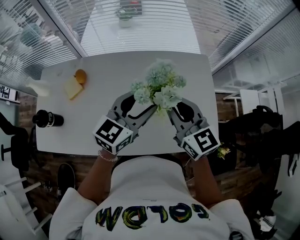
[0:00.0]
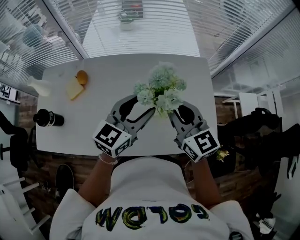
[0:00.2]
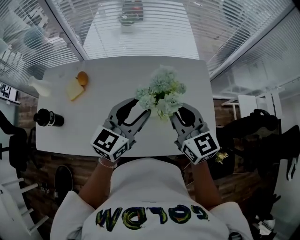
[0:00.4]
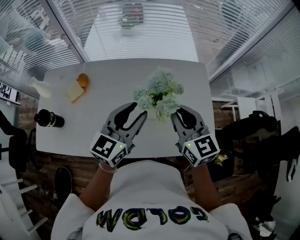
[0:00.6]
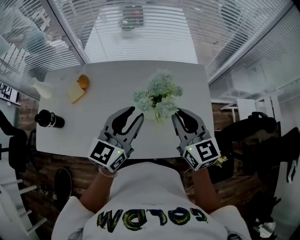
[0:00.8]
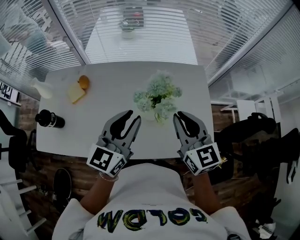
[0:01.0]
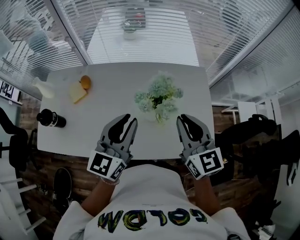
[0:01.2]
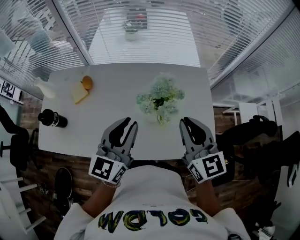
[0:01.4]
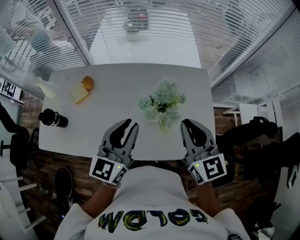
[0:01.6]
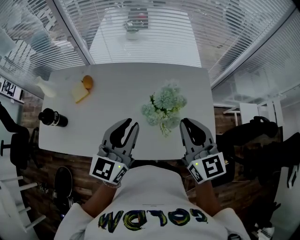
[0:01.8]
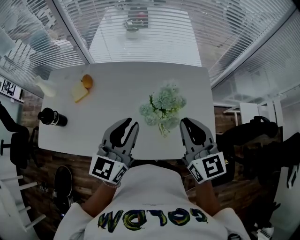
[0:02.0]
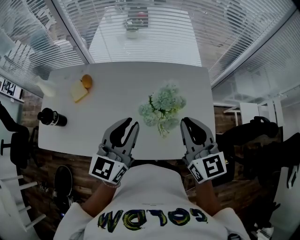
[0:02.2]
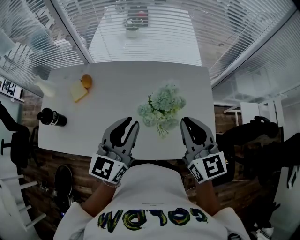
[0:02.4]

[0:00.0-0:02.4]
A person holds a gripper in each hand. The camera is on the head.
0:00.0 to 0:01.2: The right gripper changes place by some 5 cm. Meanwhile the left gripper heads backward and to the left, covering approximately 10 cm, rotates some 20 degrees, and closes its fingers.
0:01.2 to 0:02.4: Both grippers stay put.

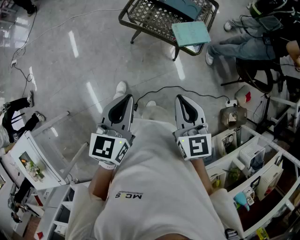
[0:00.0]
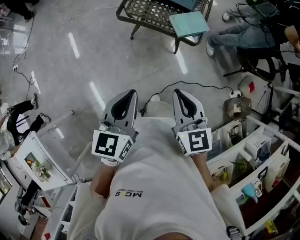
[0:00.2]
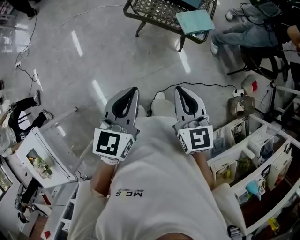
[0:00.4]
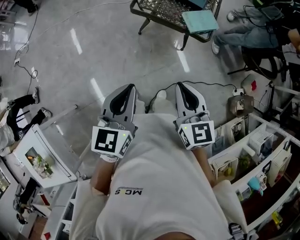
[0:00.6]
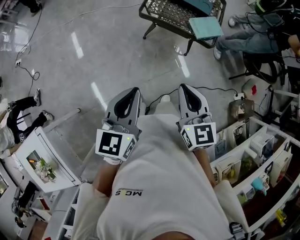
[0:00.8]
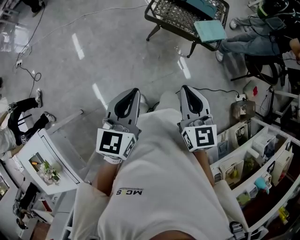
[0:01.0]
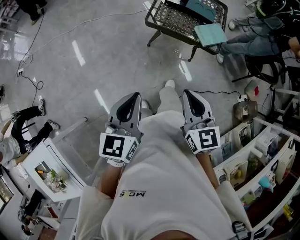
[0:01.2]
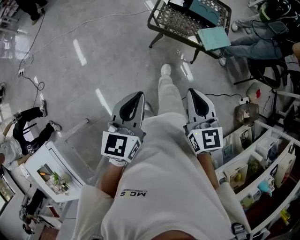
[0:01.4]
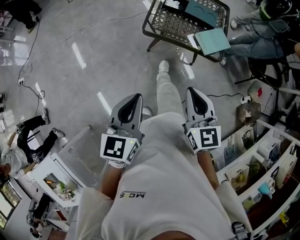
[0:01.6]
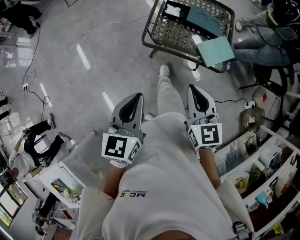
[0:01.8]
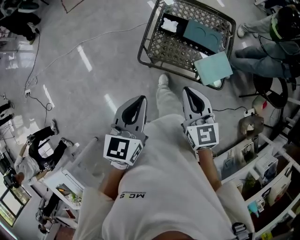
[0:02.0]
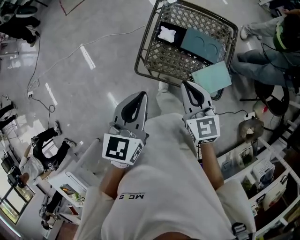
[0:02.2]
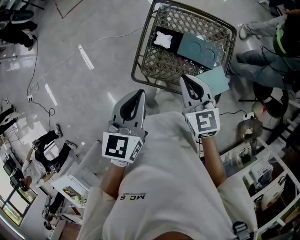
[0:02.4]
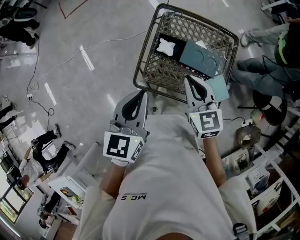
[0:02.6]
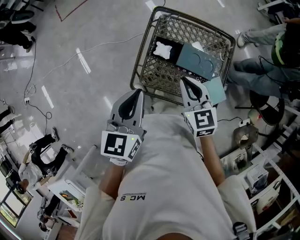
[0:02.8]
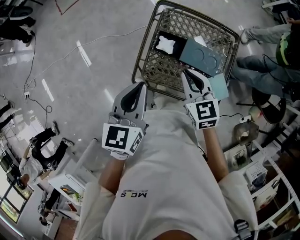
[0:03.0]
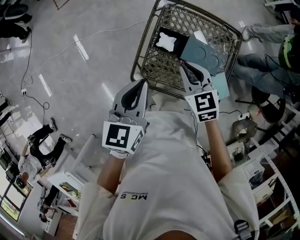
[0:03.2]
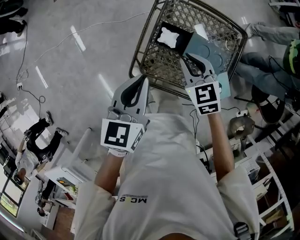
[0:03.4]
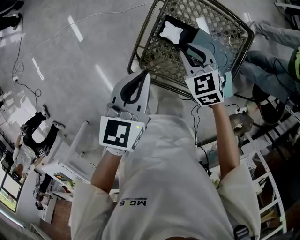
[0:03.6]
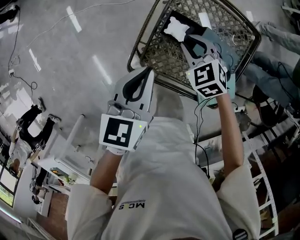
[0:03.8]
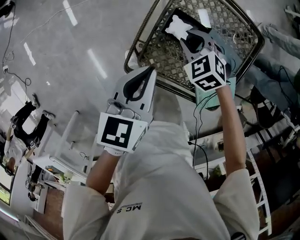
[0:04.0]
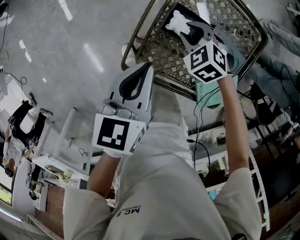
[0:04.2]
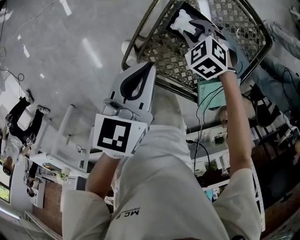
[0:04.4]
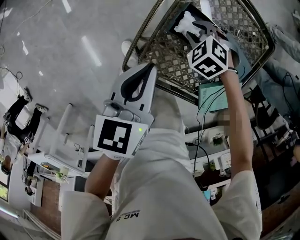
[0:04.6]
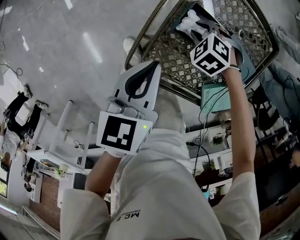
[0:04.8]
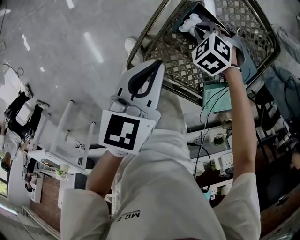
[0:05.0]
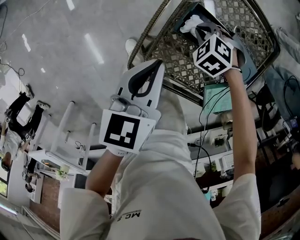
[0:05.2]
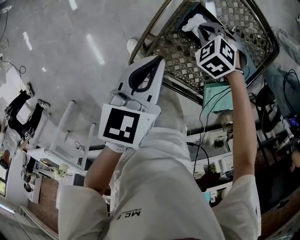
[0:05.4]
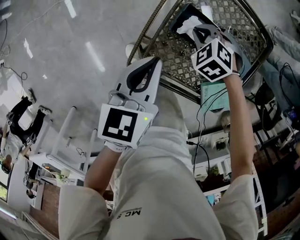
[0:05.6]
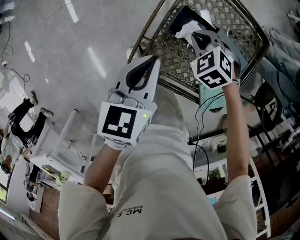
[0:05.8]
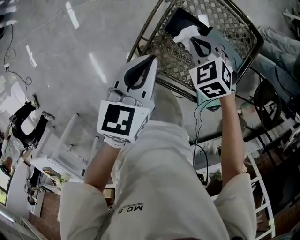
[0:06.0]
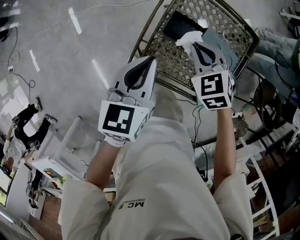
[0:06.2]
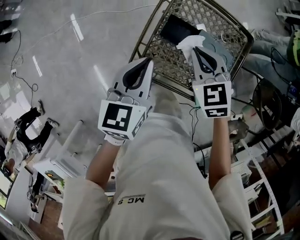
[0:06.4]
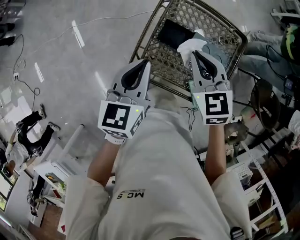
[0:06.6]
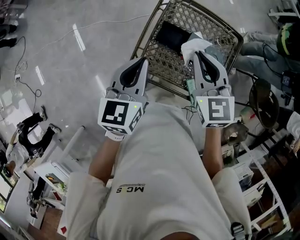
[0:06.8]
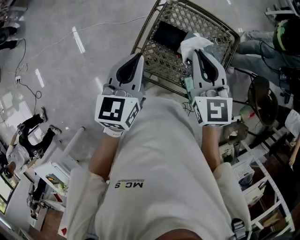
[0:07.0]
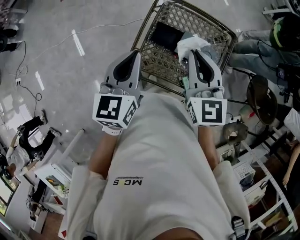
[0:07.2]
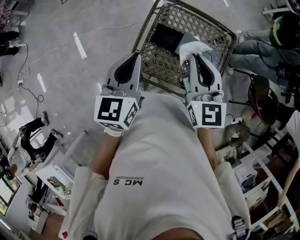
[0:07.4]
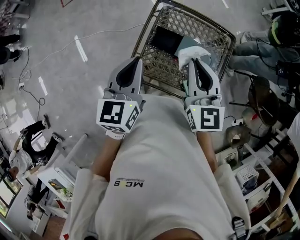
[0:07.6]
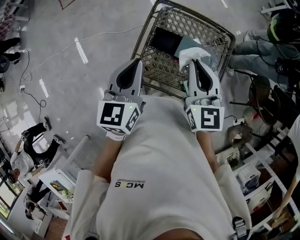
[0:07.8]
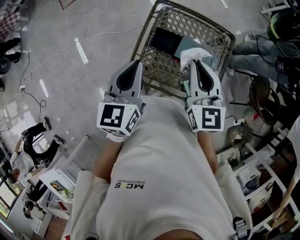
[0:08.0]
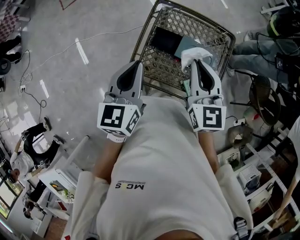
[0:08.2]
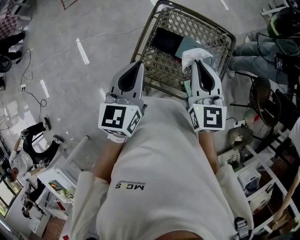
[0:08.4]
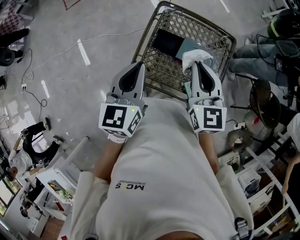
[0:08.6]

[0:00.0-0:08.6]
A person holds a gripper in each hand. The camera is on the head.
0:00.0 to 0:01.4: Both grippers travel together to the left, approximately 20 cm.
0:01.4 to 0:02.8: The pair of grippers is taken forward, about 50 cm.
0:02.8 to 0:04.4: The right gripper moves downward and forward, approximately 35 cm, tilts its fingers about 40 degrees downward, and opens its fingers; the left gripper heads downward and forward, covering some 20 cm, and turns by approximately 20 degrees.
0:04.4 to 0:05.8: The right gripper heads upward, covering roughly 5 cm, and closes.
0:05.8 to 0:07.2: The left gripper is displaced upward by some 15 cm. Meanwhile the right gripper goes roughly 35 cm upward, and tilts its fingers some 50 degrees upward.
0:07.2 to 0:08.6: The grippers move only a little.

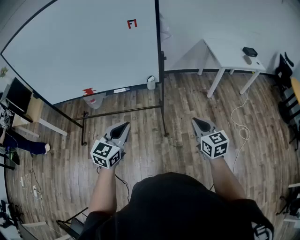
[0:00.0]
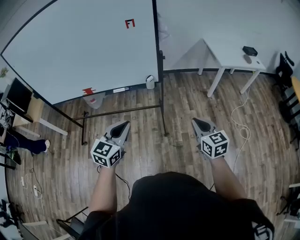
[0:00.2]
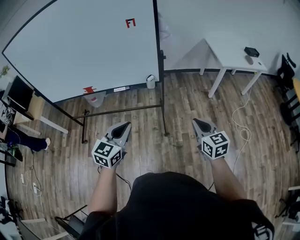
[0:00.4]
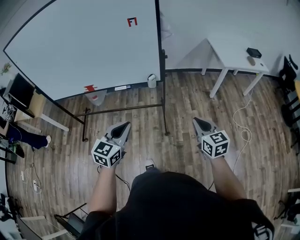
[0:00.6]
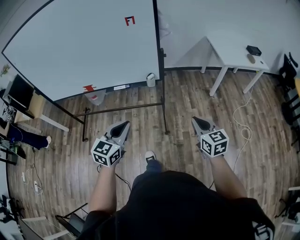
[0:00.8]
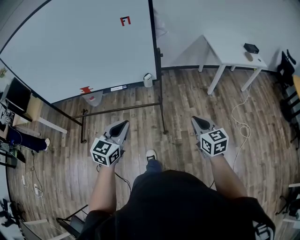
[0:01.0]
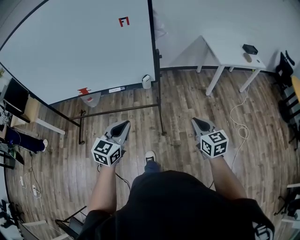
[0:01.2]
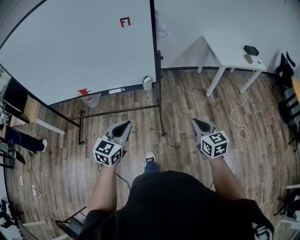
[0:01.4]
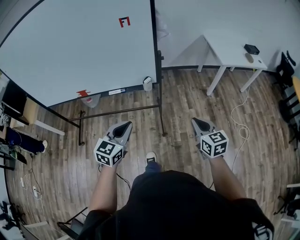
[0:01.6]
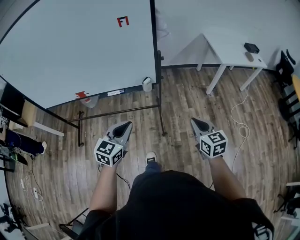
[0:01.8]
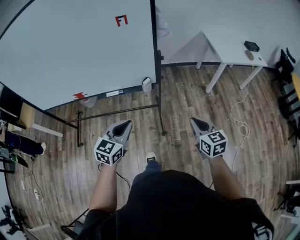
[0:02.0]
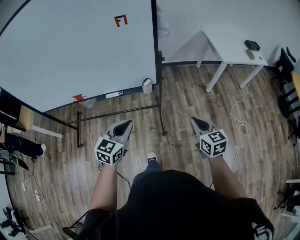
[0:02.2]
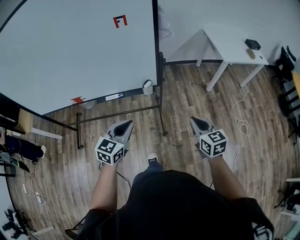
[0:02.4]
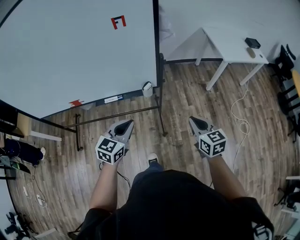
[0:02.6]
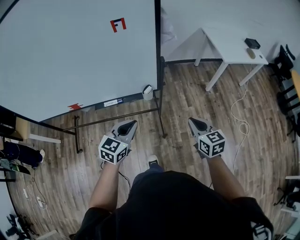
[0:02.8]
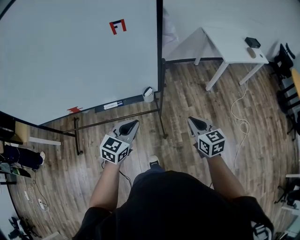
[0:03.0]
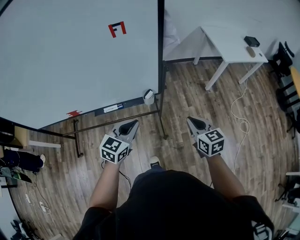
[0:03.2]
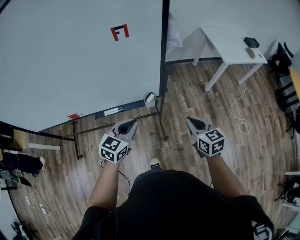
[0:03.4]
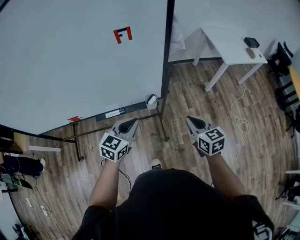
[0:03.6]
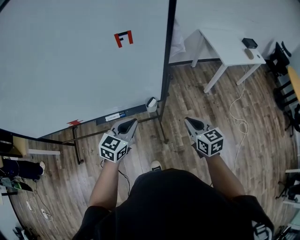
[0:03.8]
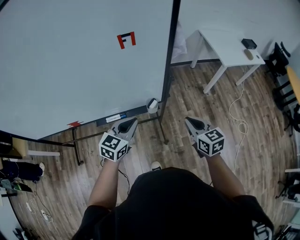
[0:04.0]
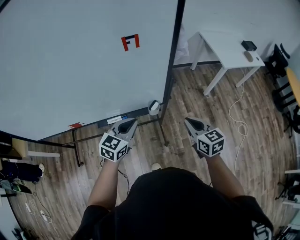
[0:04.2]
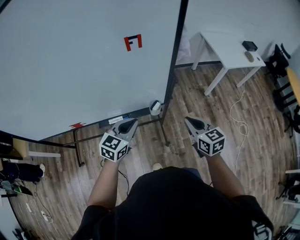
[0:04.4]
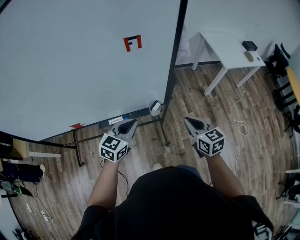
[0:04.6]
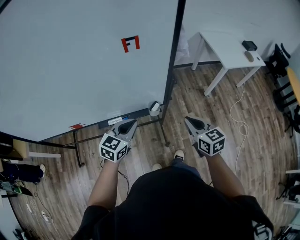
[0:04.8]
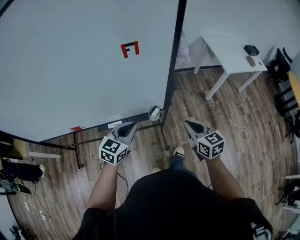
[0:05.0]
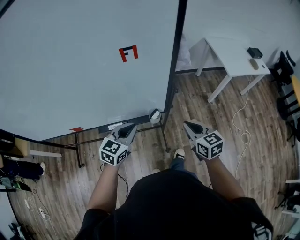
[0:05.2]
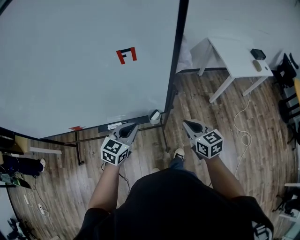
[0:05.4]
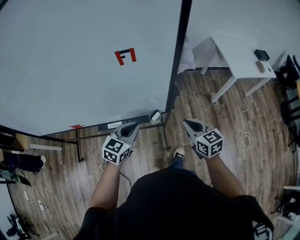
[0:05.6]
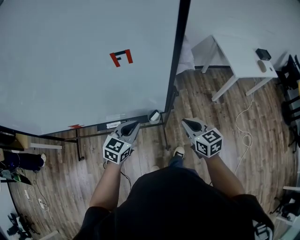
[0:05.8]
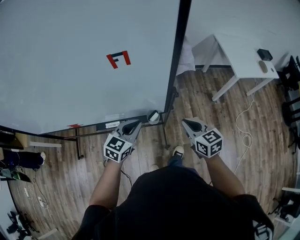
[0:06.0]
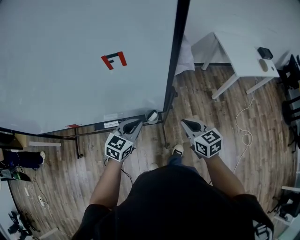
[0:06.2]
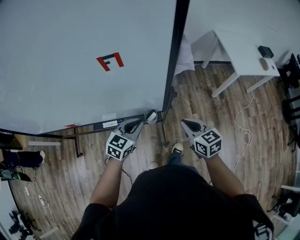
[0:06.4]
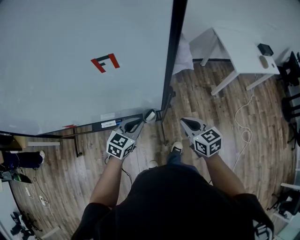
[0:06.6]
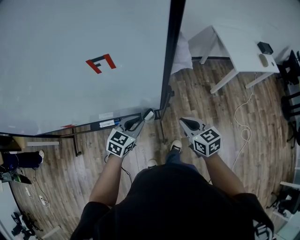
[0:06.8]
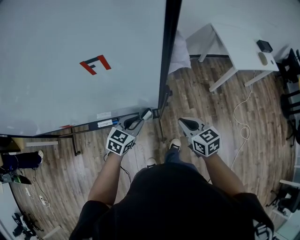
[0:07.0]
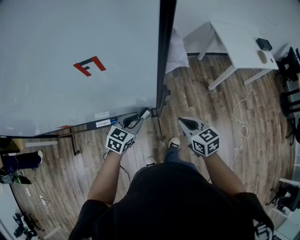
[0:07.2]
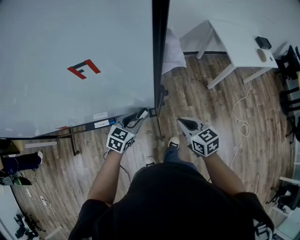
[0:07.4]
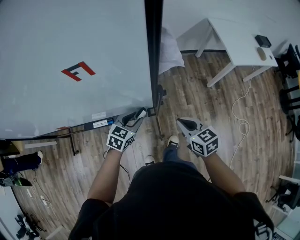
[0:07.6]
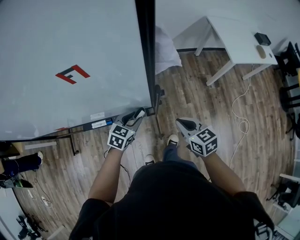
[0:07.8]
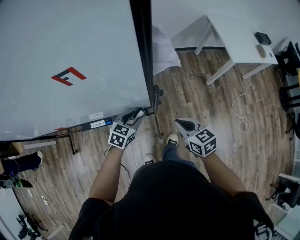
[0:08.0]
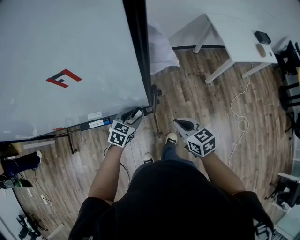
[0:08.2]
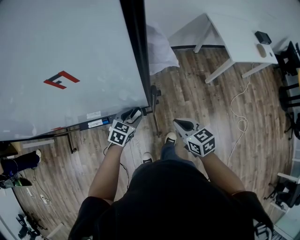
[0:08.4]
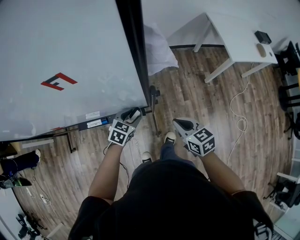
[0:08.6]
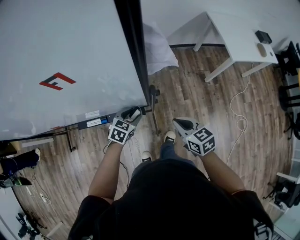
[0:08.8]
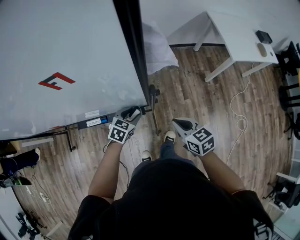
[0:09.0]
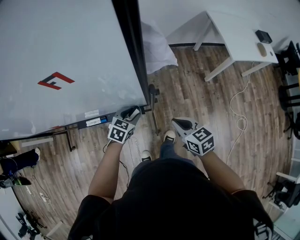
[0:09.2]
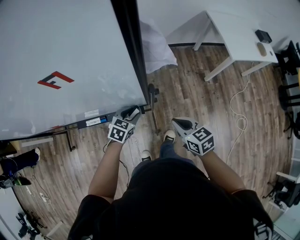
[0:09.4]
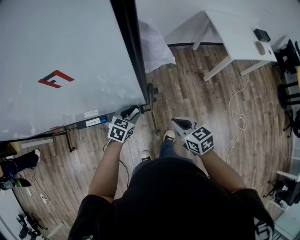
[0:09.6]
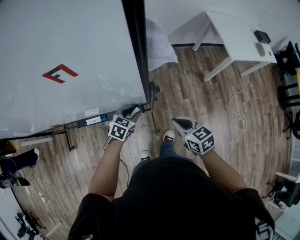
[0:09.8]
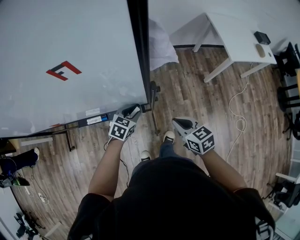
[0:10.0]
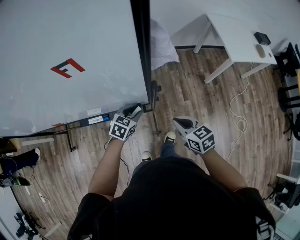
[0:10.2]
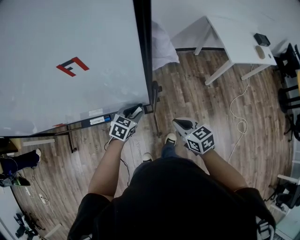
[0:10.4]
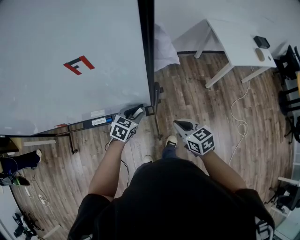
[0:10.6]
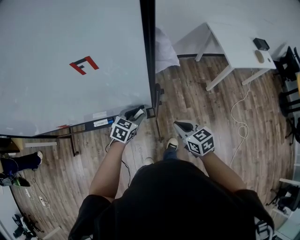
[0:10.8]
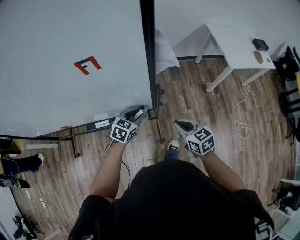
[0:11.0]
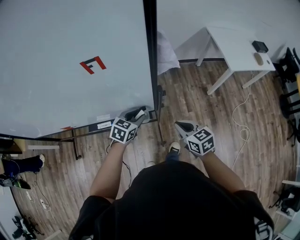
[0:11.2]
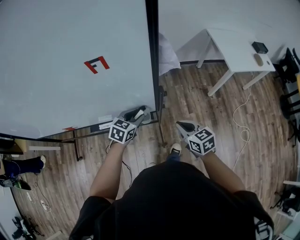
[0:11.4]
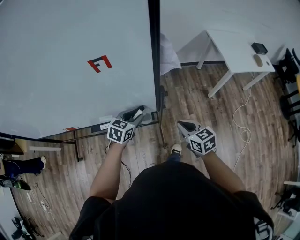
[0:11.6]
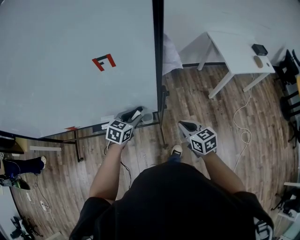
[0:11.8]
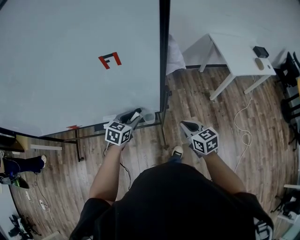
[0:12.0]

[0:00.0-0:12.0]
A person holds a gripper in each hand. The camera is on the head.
0:00.0 to 0:01.6: The grippers both shift forward by approximately 5 cm.
0:01.6 to 0:03.0: The right gripper heads forward and to the left, covering some 15 cm; the left gripper is displaced forward by some 15 cm.
0:03.0 to 0:04.4: The left gripper goes roughly 10 cm forward and to the left. Meanwhile the right gripper moves to the left and forward, roughly 10 cm.
0:04.4 to 0:06.0: Both grippers travel together forward, some 10 cm.
0:06.0 to 0:07.6: The right gripper travels downward by approximately 5 cm. The left gripper is displaced downward, forward and to the right by approximately 15 cm, and opens its fingers.
0:07.6 to 0:09.0: The left gripper is displaced downward by roughly 5 cm.
0:09.0 to 0:10.4: The grippers stay close to where they were, moving slightly.
0:10.4 to 0:12.0: The left gripper shifts approximately 10 cm upward and to the left.
